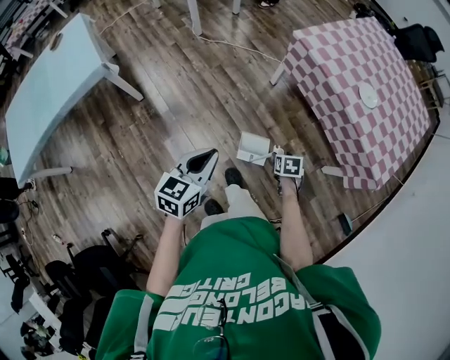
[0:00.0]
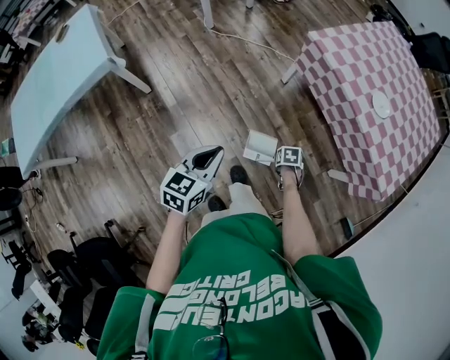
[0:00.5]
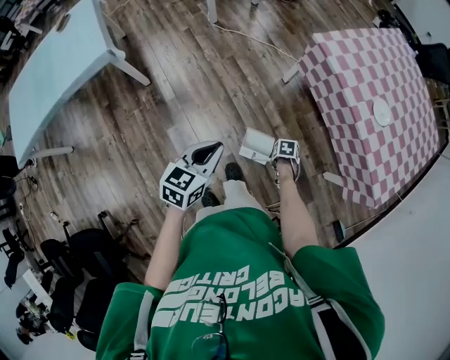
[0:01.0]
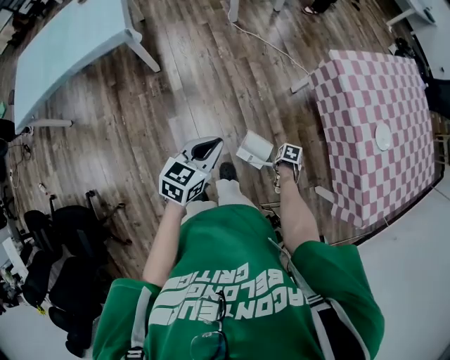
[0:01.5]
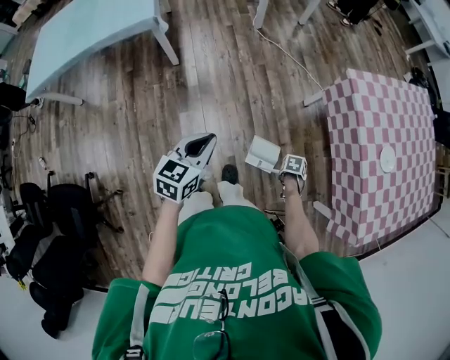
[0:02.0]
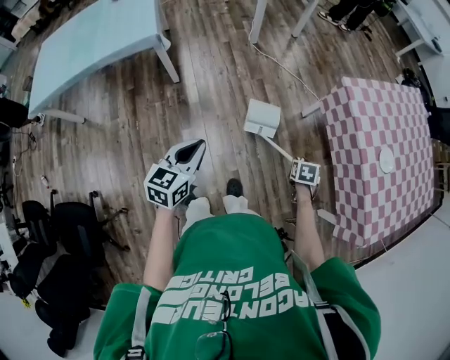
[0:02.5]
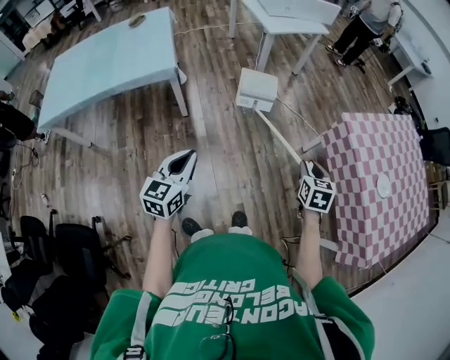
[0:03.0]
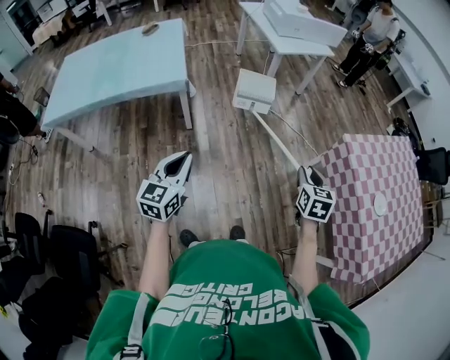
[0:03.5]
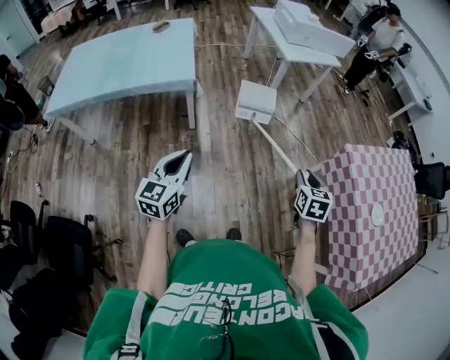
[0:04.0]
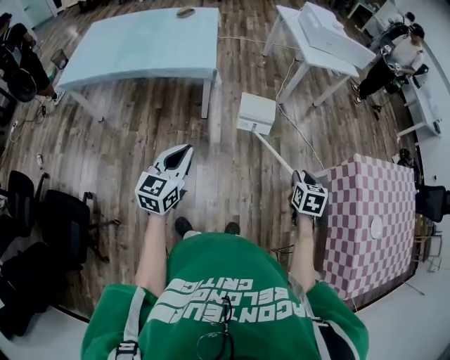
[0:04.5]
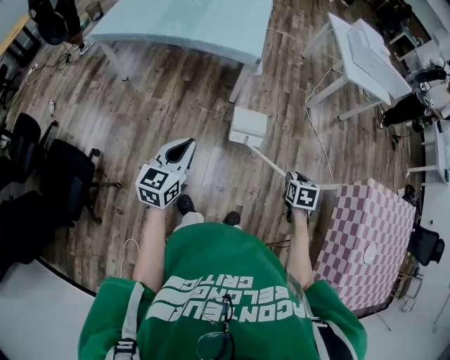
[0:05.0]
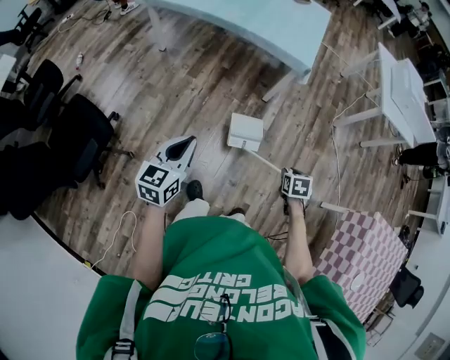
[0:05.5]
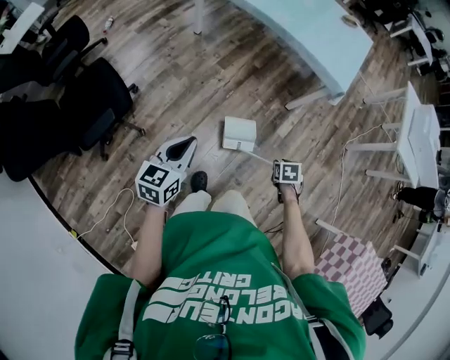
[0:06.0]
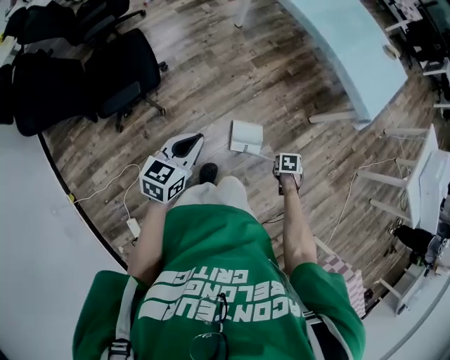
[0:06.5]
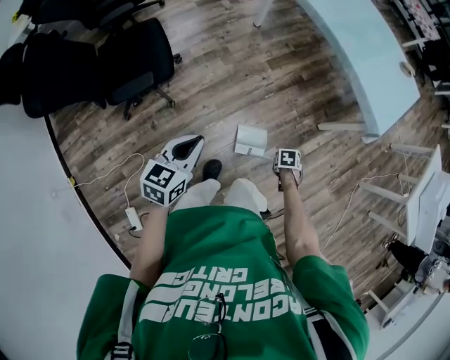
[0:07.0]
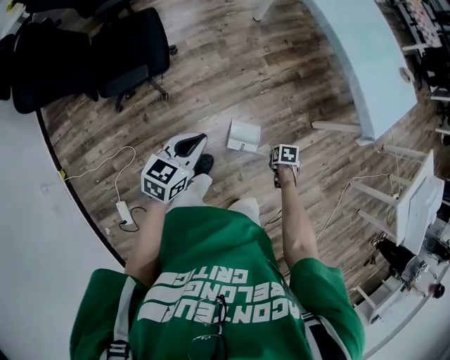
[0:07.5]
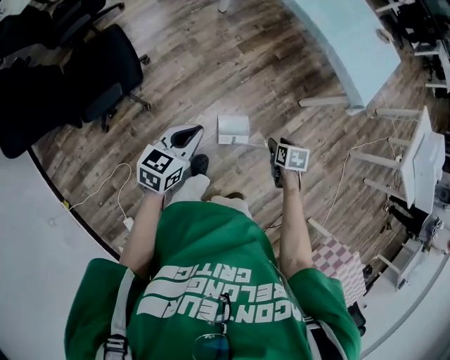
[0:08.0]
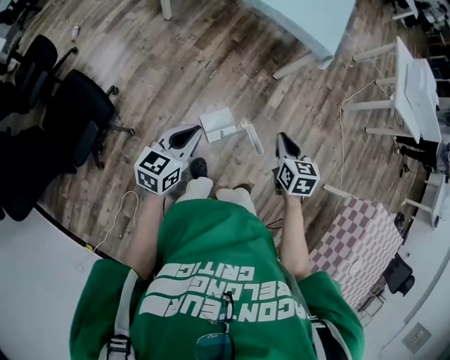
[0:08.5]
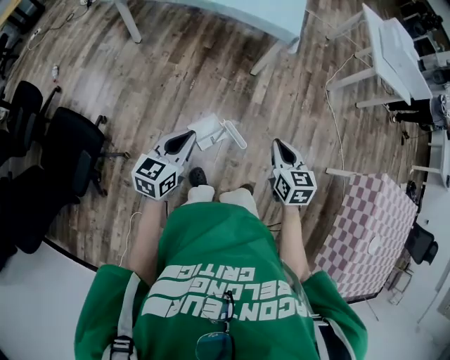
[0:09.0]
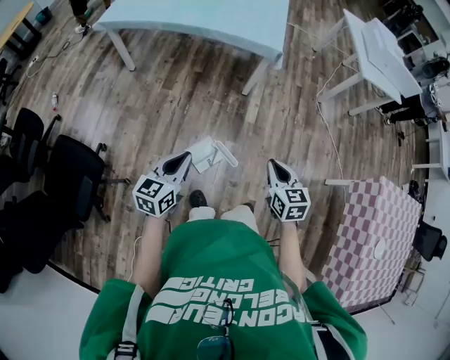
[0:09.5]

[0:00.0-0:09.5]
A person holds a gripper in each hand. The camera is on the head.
0.0 to 2.0 s: The right gripper is displaced downward by approximately 10 cm, changes its angle by approximately 30 degrees, and closes. The left gripper moves some 5 cm, and rotates some 20 degrees.
2.0 to 4.0 s: The left gripper changes place by some 30 cm, and swivels roughly 20 degrees. The right gripper moves upward, some 35 cm, and angles its fingers upward, by approximately 50 degrees.
4.0 to 5.5 s: The left gripper shifts by about 30 cm, and changes its angle by about 30 degrees; the right gripper ends up approximately 35 cm from where it was, and changes its angle by some 40 degrees.
5.5 to 7.5 s: The right gripper ends up about 35 cm from where it was, and turns by about 40 degrees. Meanwhile the left gripper changes place by about 20 cm, and turns by roughly 30 degrees.
7.5 to 9.5 s: The left gripper ends up some 20 cm from where it was, and turns by roughly 40 degrees; the right gripper travels upward by roughly 30 cm, angles its fingers upward, by approximately 50 degrees, and closes.

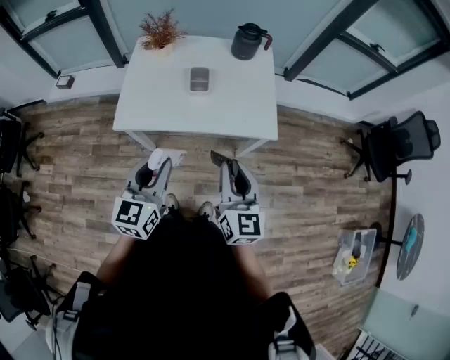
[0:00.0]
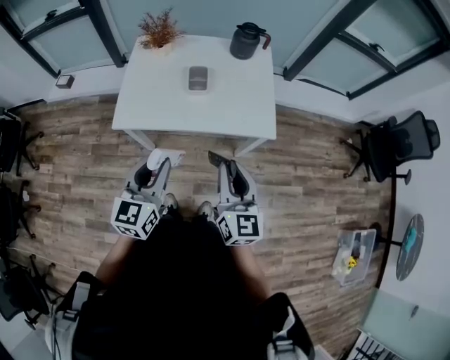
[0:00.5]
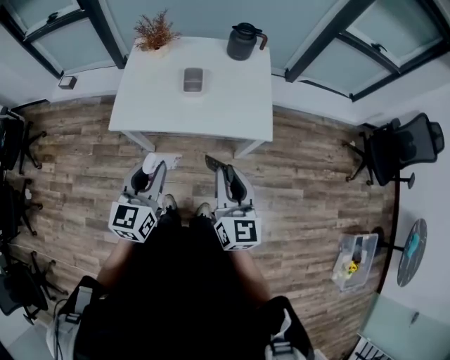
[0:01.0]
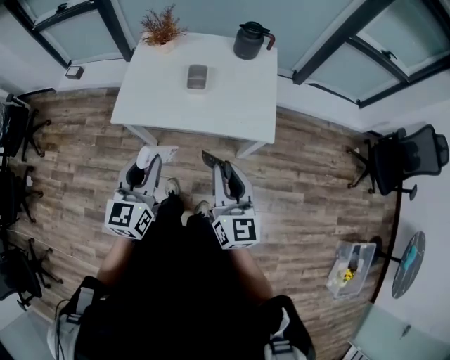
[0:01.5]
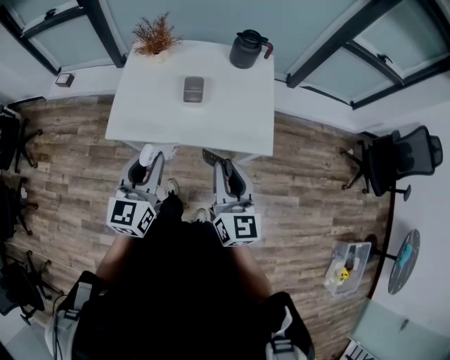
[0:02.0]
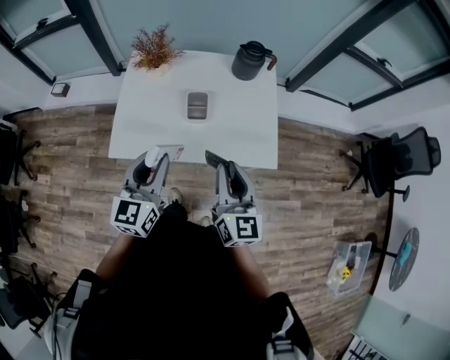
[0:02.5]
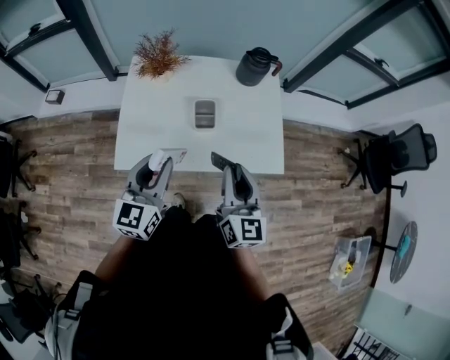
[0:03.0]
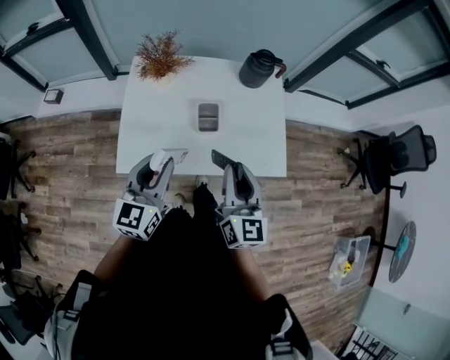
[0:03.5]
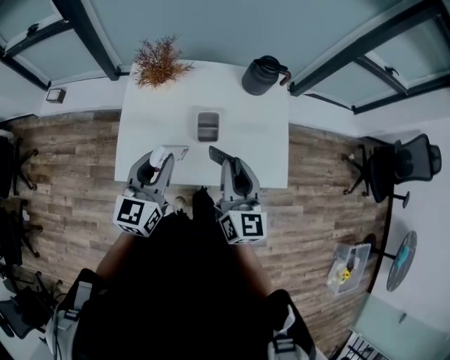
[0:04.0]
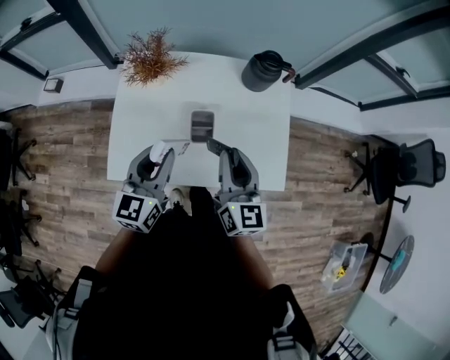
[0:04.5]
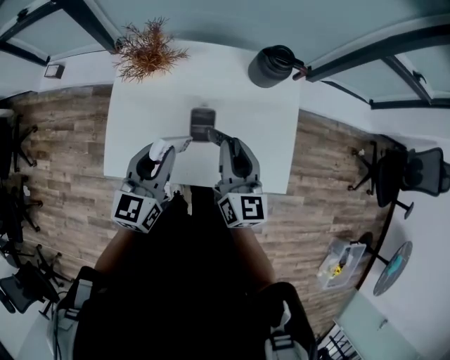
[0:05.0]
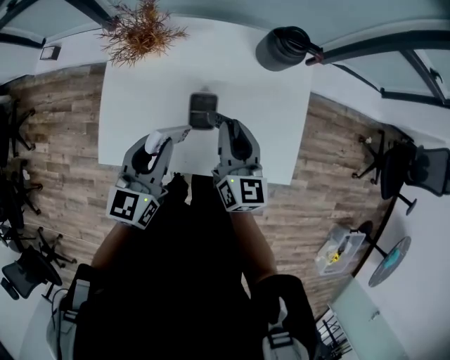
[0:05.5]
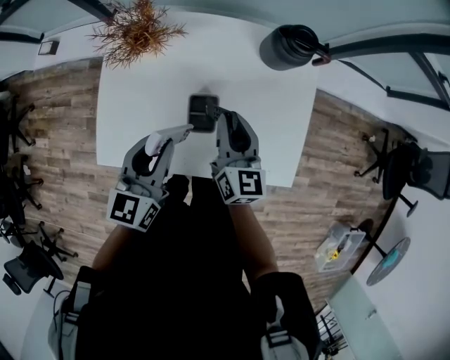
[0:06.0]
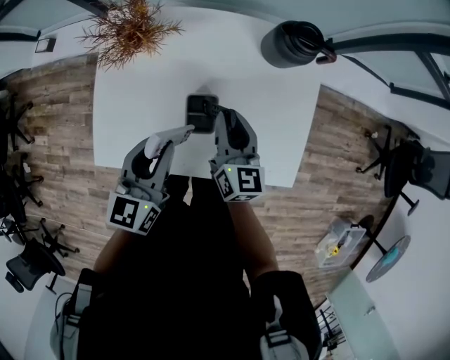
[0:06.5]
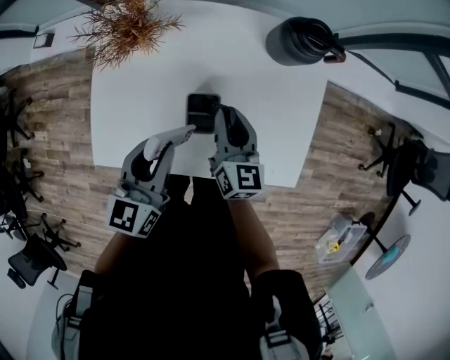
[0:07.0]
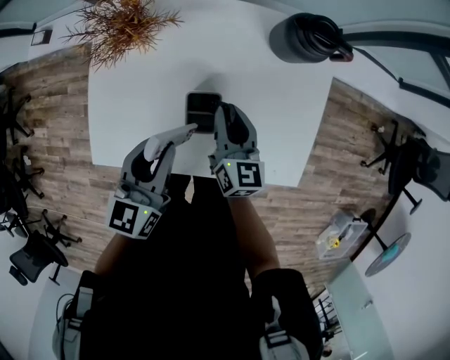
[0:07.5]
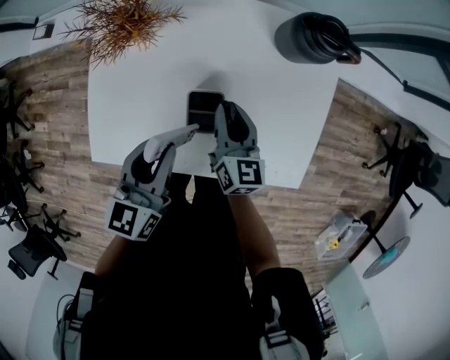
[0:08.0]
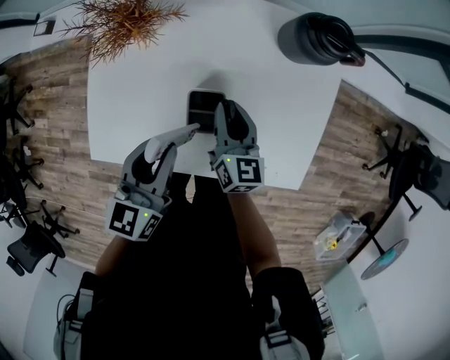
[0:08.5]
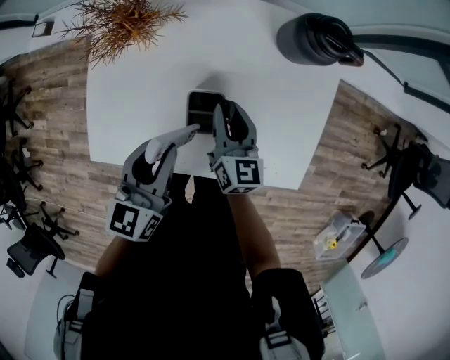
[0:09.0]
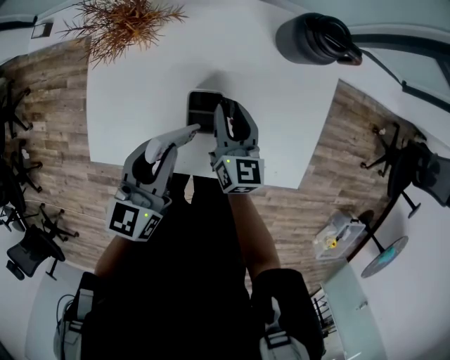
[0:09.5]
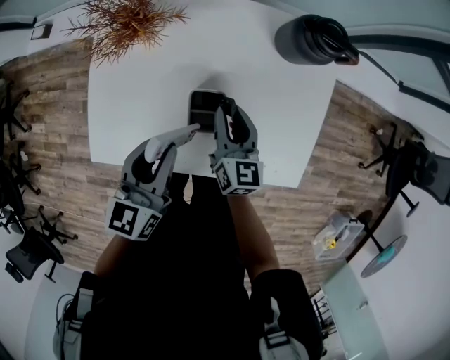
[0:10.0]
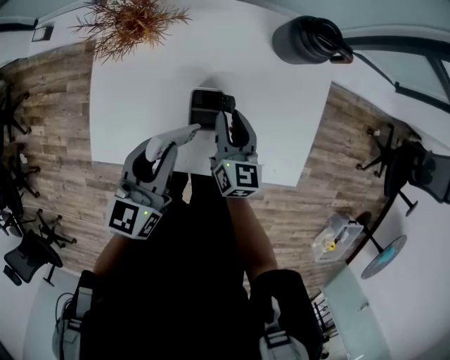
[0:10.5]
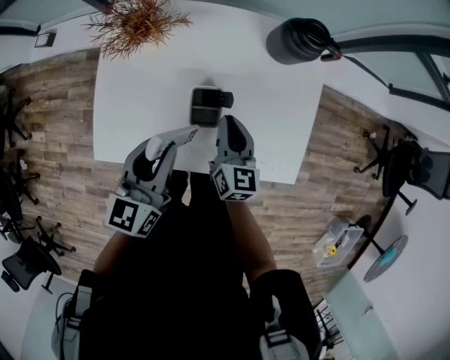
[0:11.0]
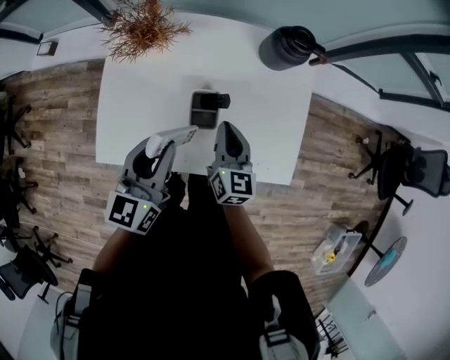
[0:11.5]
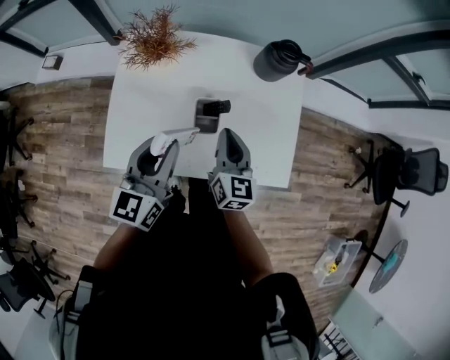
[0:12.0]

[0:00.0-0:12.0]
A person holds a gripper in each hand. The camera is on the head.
0.0 to 2.0 s: Both grippers move forward, some 10 cm.
2.0 to 4.0 s: Both grippers travel together forward and to the left, about 20 cm.
4.0 to 6.0 s: The right gripper is displaced forward and downward by approximately 25 cm; the left gripper moves forward and downward, approximately 15 cm.
6.0 to 8.0 s: The right gripper heads downward, covering roughly 10 cm. Meanwhile the left gripper shifts by roughly 5 cm.
8.0 to 10.0 s: Both grippers stay put.
10.0 to 12.0 s: The two grippers go about 15 cm upward and backward. The right gripper closes its fingers.

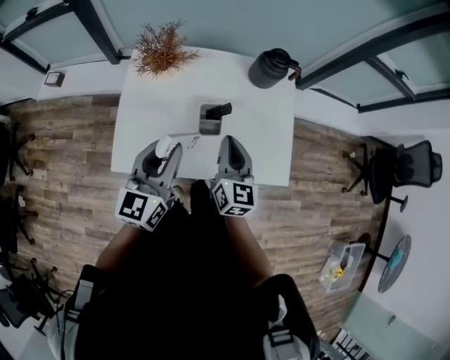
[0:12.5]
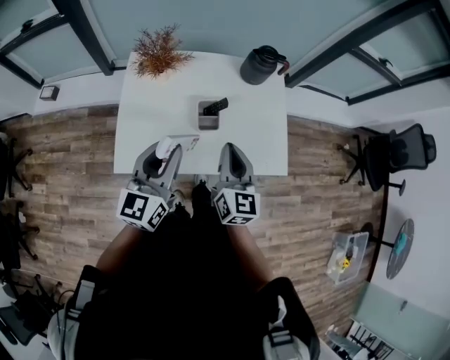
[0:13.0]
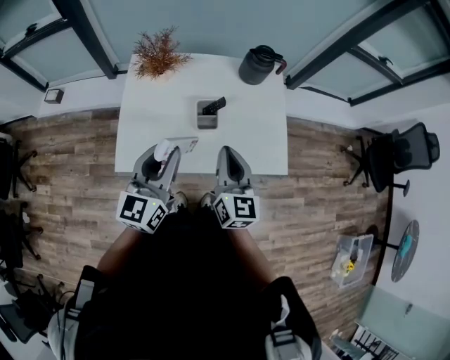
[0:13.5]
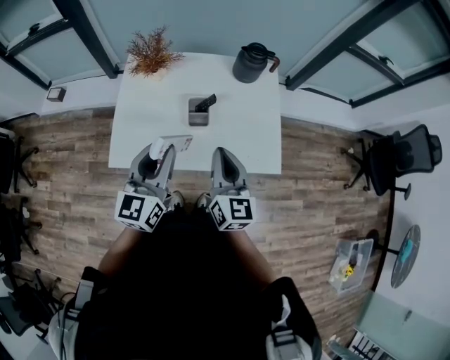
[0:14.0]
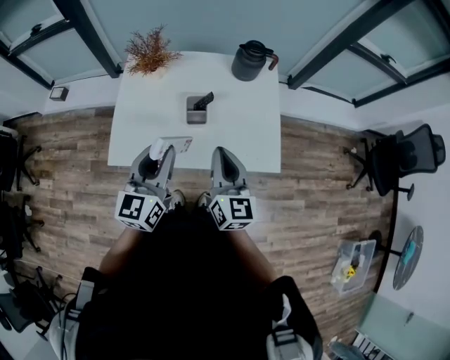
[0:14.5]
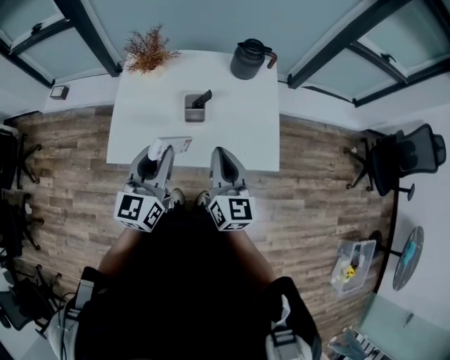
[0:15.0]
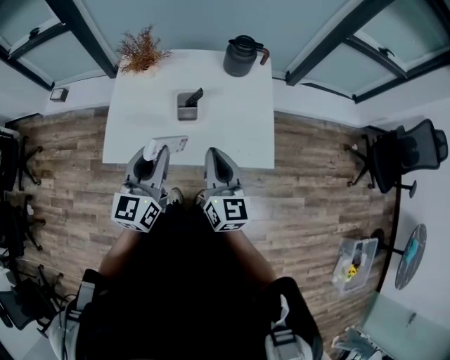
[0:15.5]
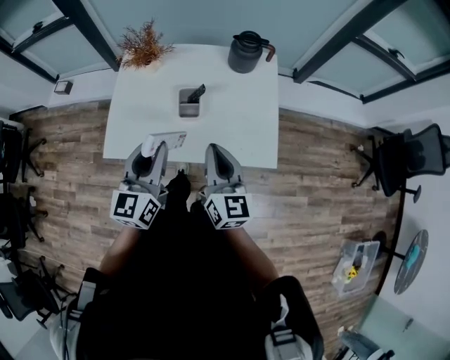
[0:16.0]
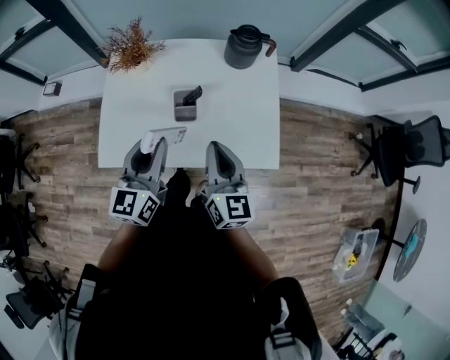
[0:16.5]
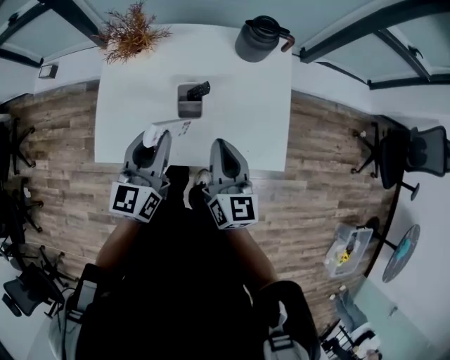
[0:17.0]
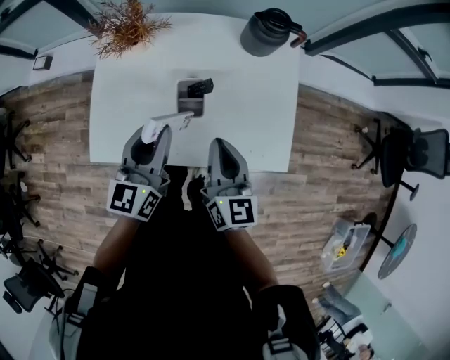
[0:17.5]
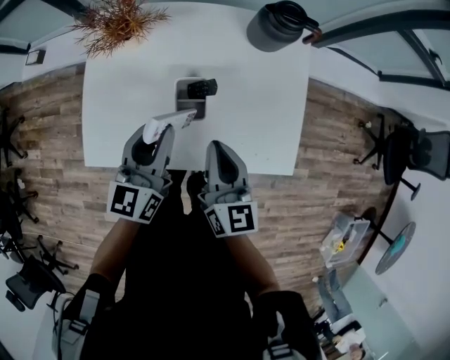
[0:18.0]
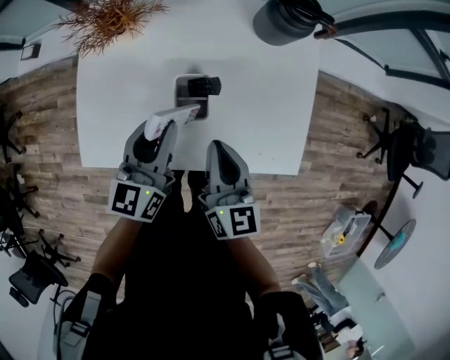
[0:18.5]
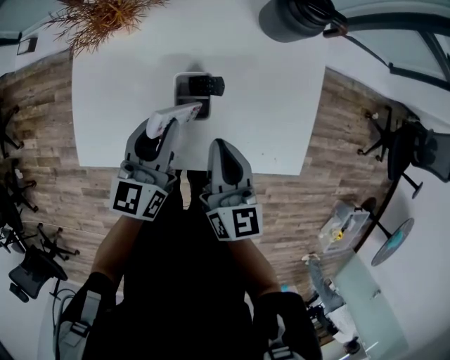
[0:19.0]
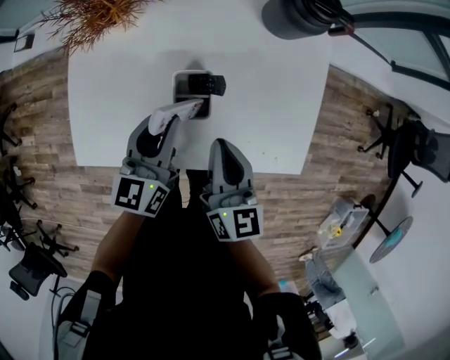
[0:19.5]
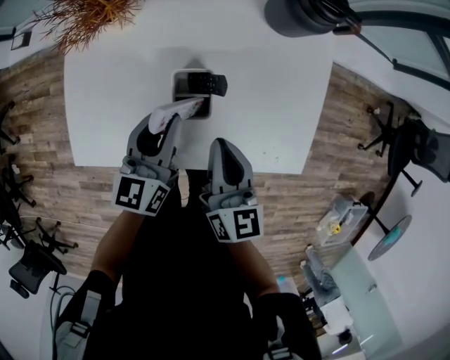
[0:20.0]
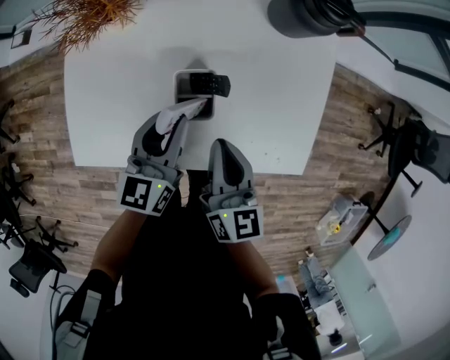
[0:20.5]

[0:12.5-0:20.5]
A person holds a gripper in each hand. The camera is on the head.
12.5 to 14.5 s: The left gripper shifts approximately 10 cm backward and to the right. Meanwhile the right gripper shifts approximately 15 cm backward, to the right and upward.
14.5 to 16.5 s: The right gripper shifts by some 5 cm. Meanwhile the left gripper moves forward, roughly 5 cm.
16.5 to 18.5 s: Both grippers travel together downward and forward, approximately 15 cm.
18.5 to 20.5 s: The left gripper heads downward, covering roughly 5 cm.
